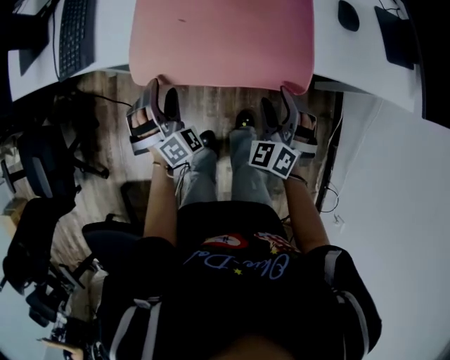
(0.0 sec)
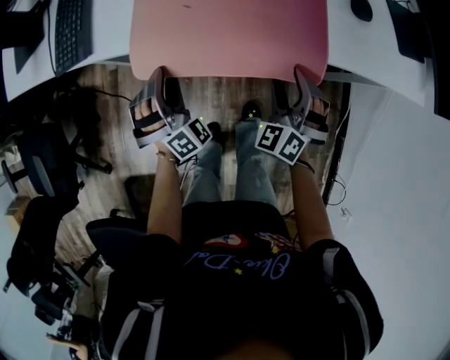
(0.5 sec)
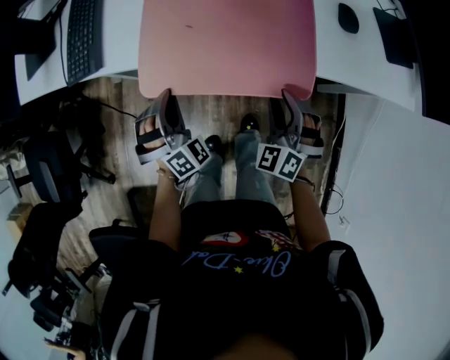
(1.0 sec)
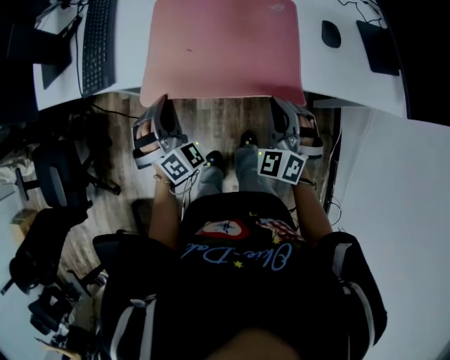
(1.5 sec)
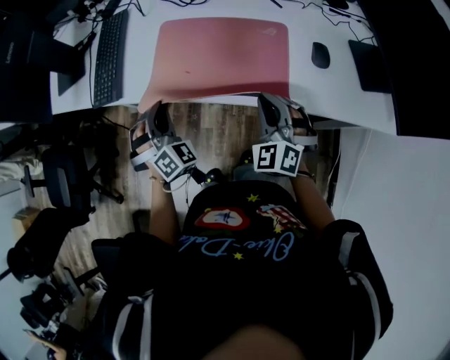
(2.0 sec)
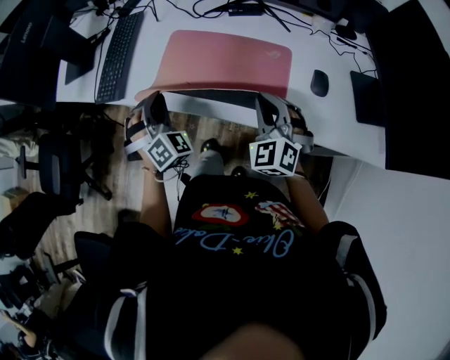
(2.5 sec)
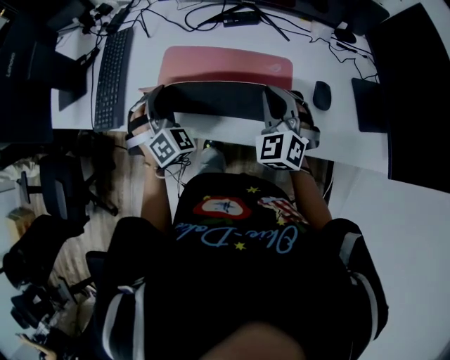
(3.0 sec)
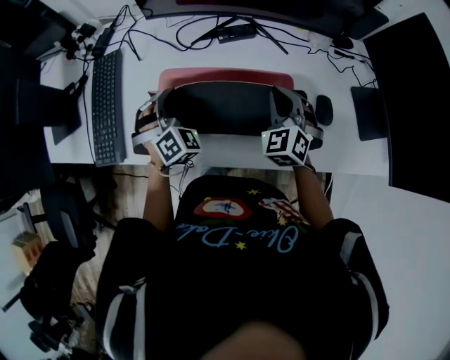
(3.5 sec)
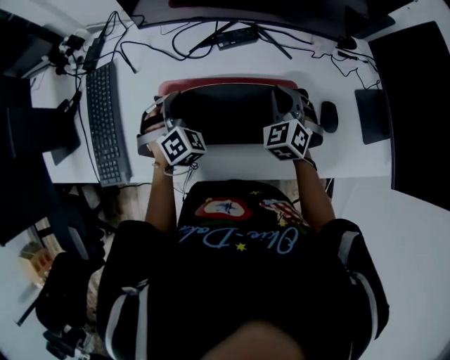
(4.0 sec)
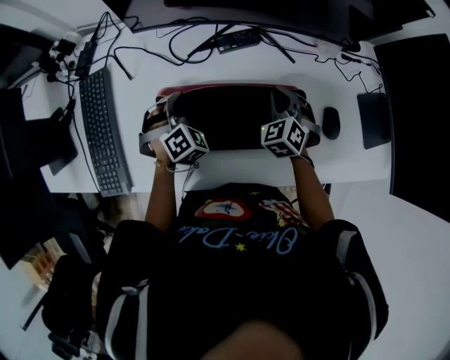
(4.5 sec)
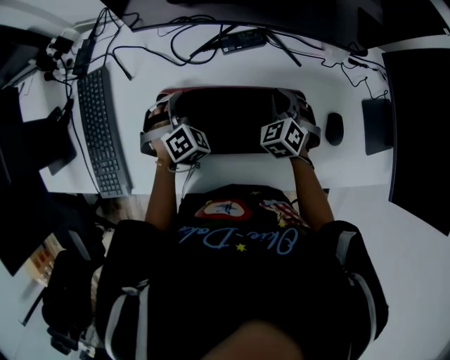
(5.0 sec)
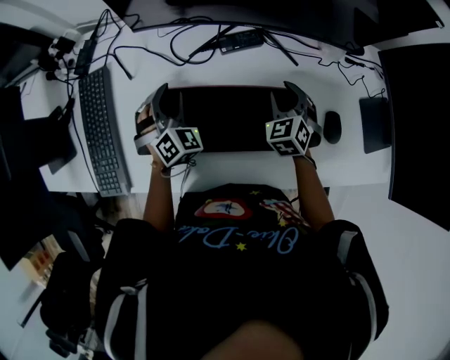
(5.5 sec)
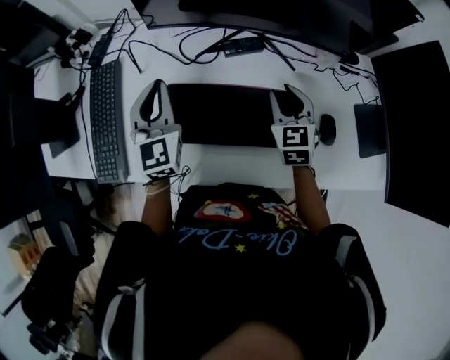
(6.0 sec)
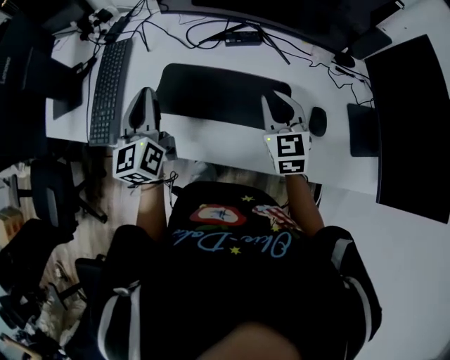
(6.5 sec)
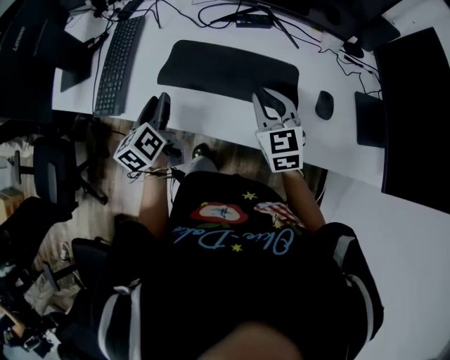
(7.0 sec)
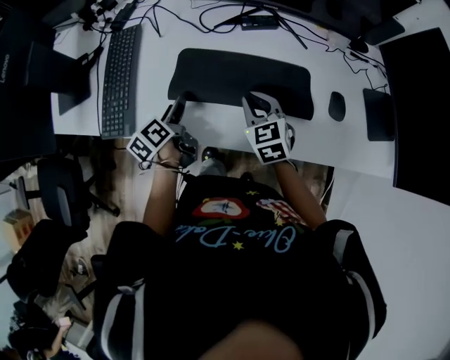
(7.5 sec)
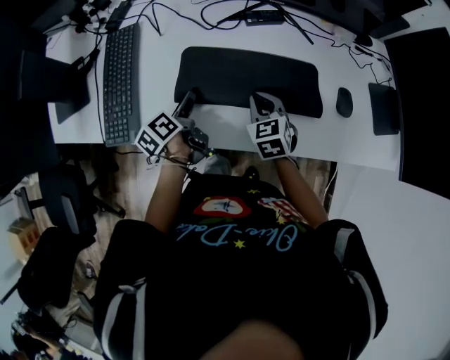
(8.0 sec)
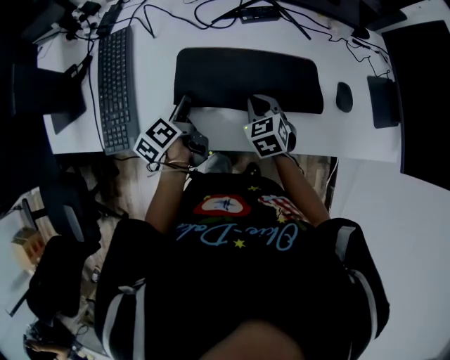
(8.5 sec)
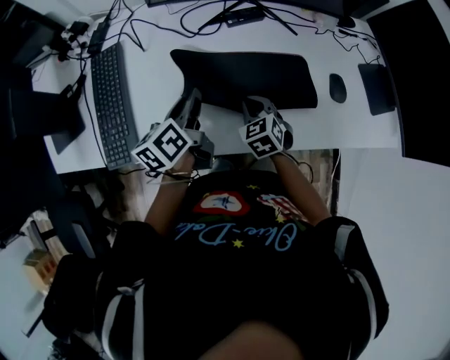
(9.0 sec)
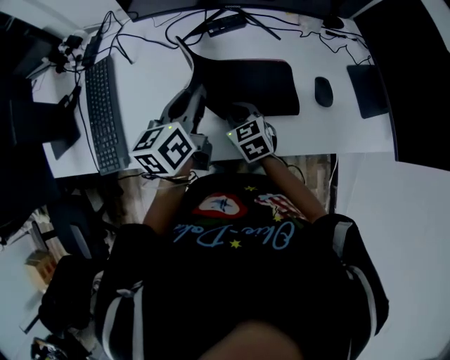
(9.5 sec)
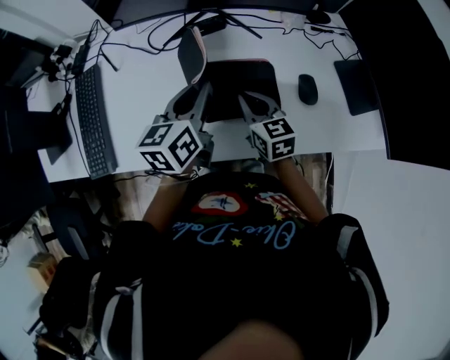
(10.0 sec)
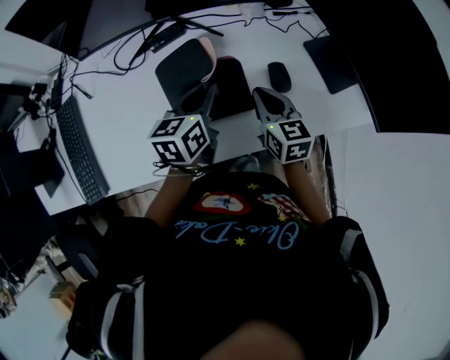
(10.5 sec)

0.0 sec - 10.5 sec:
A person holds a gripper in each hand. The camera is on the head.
0.0 sec - 2.0 sec: The left gripper moves upward, some 15 cm, and closes; the right gripper travels upward and forward by some 15 cm, and closes.
2.0 sec - 4.0 sec: Both grippers travel together forward, some 25 cm. The left gripper swivels approximately 20 degrees.
4.0 sec - 6.5 sec: The right gripper is displaced upward and backward by some 10 cm, and changes its angle by about 30 degrees. The left gripper shifts approximately 20 cm upward and backward, twists some 80 degrees counterclockwise, seen from behind, and opens, then closes again.
6.5 sec - 8.5 sec: The left gripper moves downward, some 20 cm, turns by some 60 degrees, and opens, then closes once more. The right gripper heads downward and to the left, covering about 20 cm, and swivels approximately 30 degrees.
8.5 sec - 10.5 sec: The grippers both shift to the right and upward by about 30 cm. The left gripper rolls clockwise, seen from behind, by approximately 50 degrees. The right gripper changes its angle by about 40 degrees.

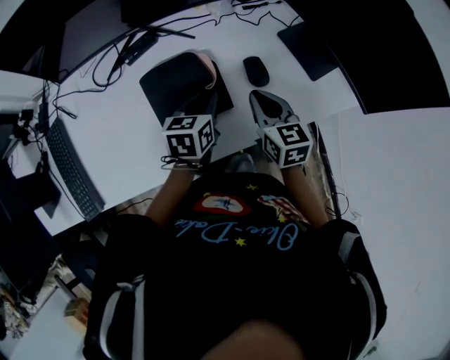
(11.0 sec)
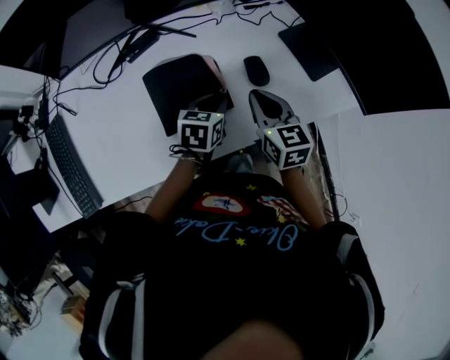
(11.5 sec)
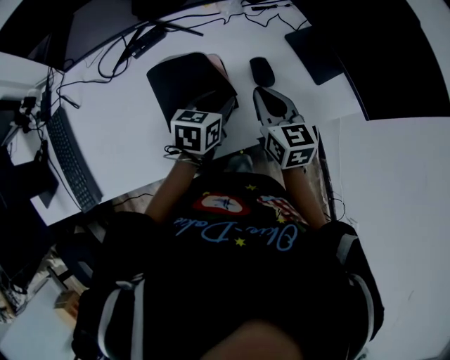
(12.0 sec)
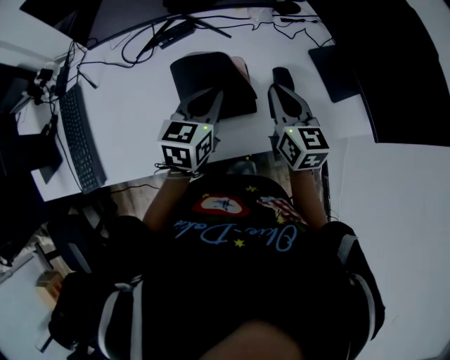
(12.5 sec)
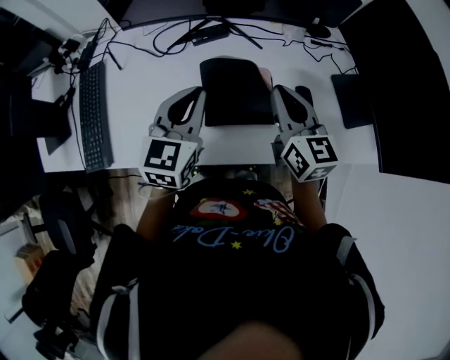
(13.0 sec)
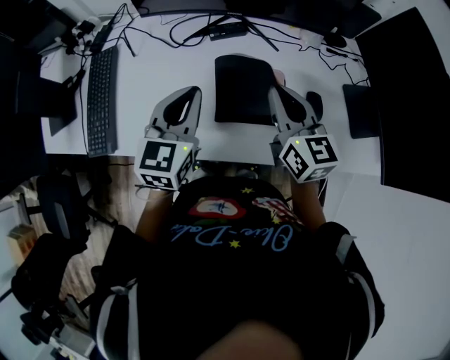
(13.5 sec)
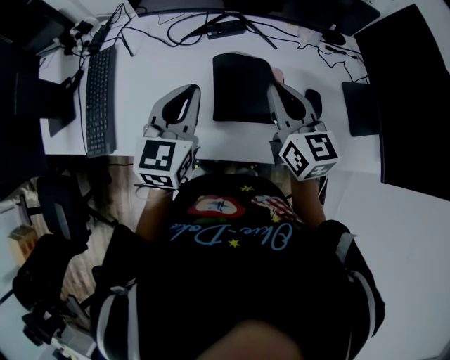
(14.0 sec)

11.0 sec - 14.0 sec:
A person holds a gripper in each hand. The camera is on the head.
11.0 sec - 12.5 sec: The right gripper moves roughly 5 cm. Meanwhile the left gripper travels upward and to the left by some 10 cm, and opens and closes again.
12.5 sec - 14.0 sec: The grippers both shift to the left and upward by roughly 15 cm. The left gripper changes its angle by some 20 degrees.

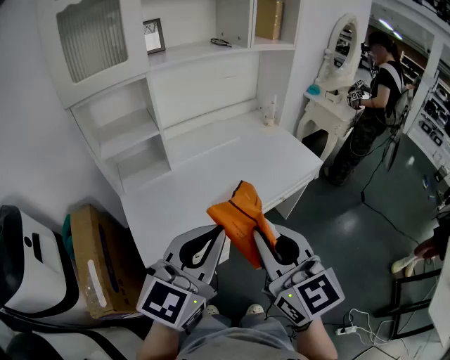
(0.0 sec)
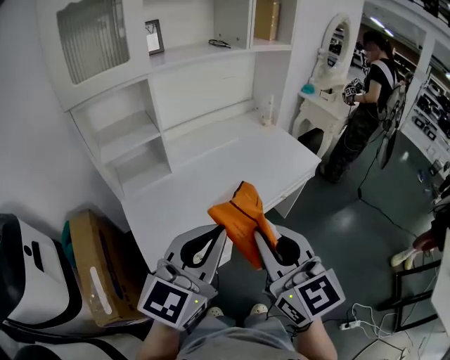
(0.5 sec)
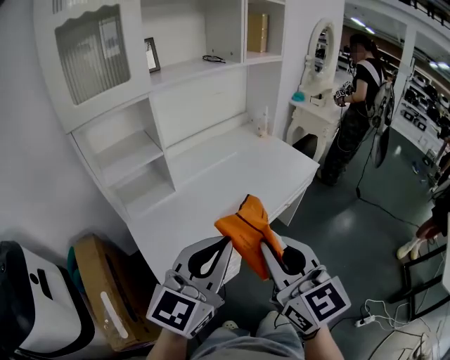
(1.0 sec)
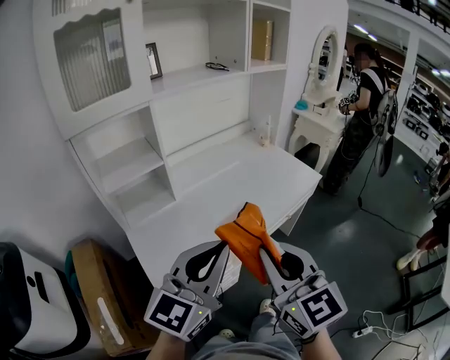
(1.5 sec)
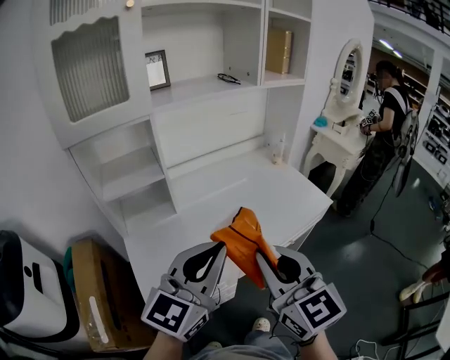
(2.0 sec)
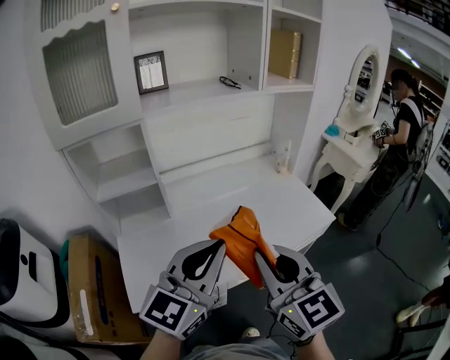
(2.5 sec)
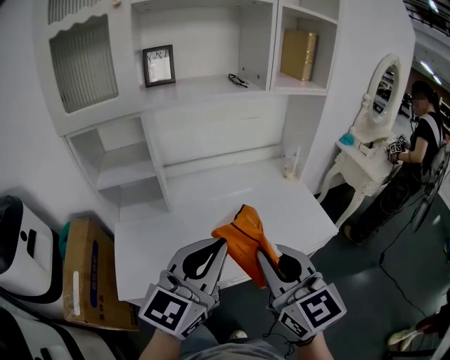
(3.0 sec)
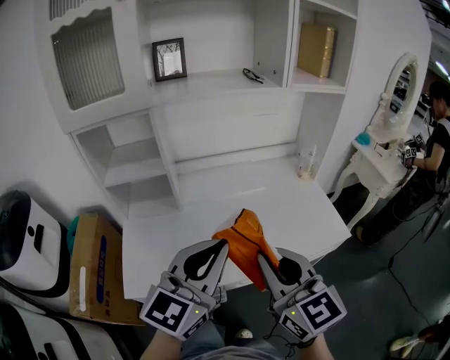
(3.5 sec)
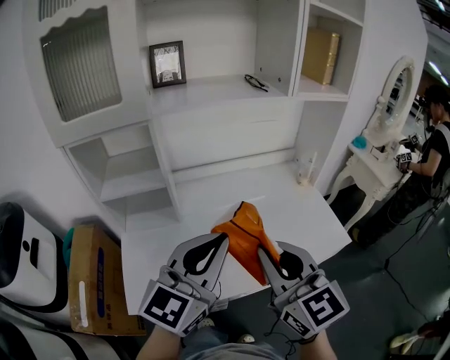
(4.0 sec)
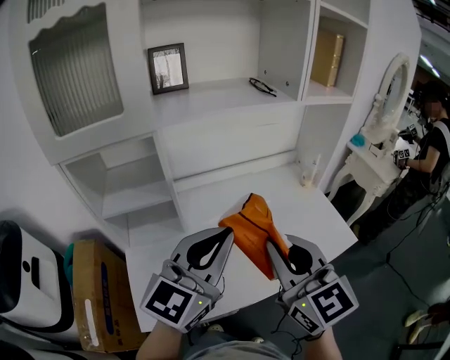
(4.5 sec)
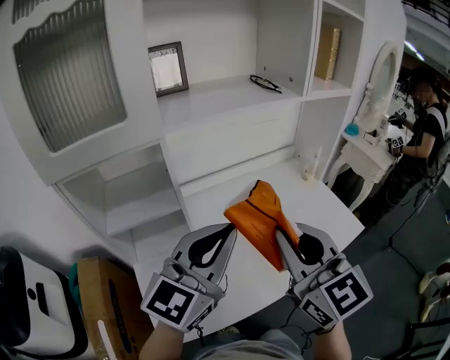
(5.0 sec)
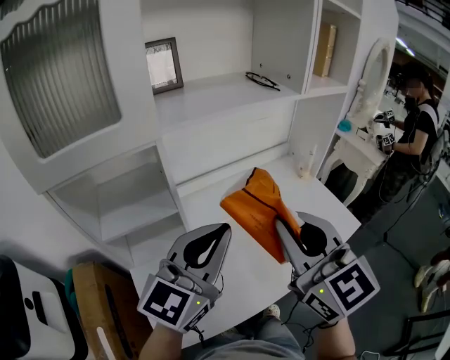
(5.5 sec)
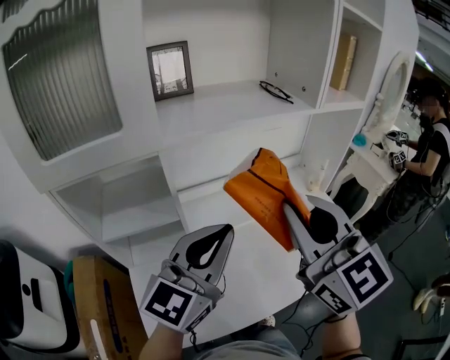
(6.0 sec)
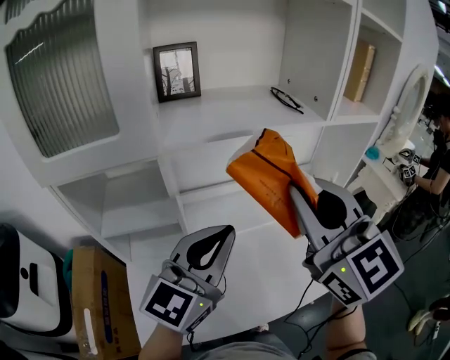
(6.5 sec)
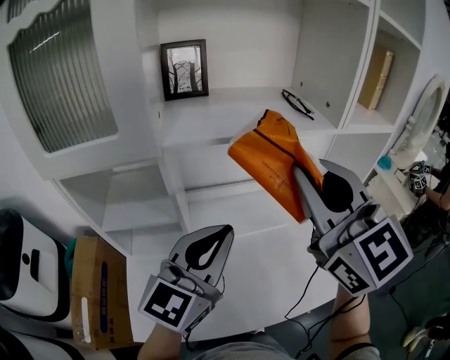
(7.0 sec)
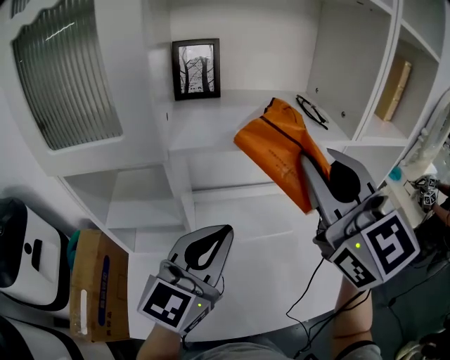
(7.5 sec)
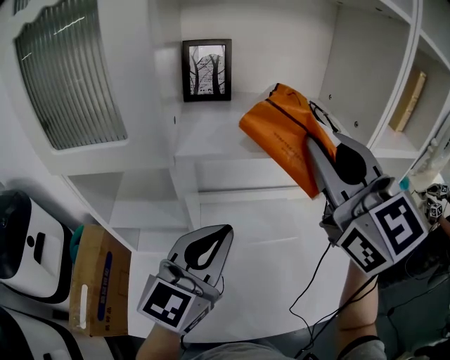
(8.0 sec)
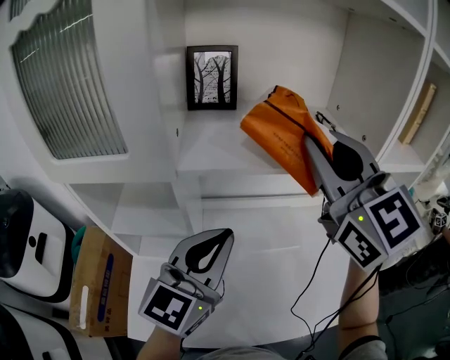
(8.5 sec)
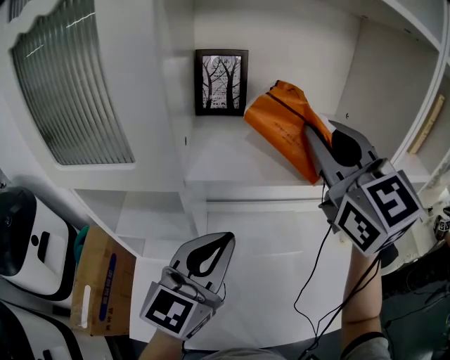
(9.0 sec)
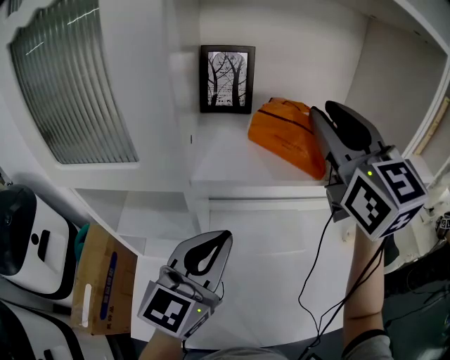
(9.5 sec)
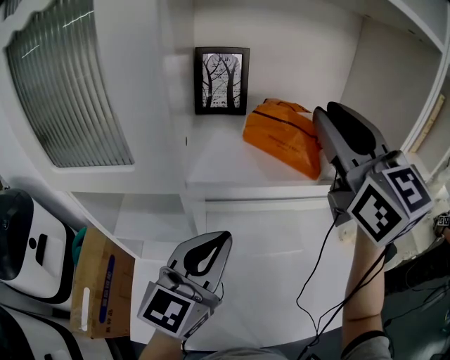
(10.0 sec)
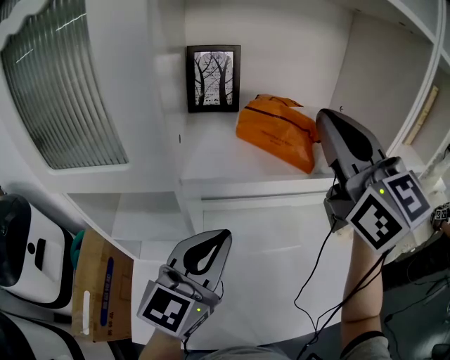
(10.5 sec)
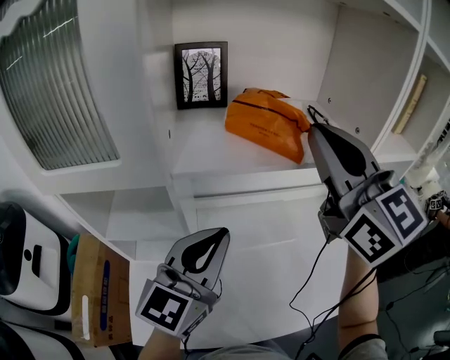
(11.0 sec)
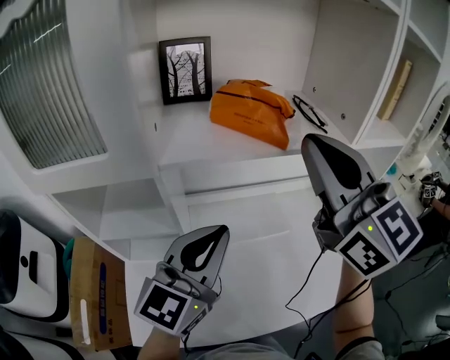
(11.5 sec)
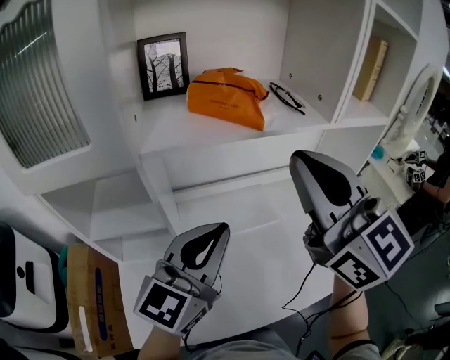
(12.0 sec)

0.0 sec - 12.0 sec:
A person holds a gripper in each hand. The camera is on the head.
0.0 sec - 2.0 sec: The two grippers go approximately 10 cm forward.
2.0 sec - 4.0 sec: Both grippers move forward, approximately 15 cm.
4.0 sec - 6.0 sec: The right gripper travels forward, upward and to the left by approximately 20 cm, while the left gripper shifts about 15 cm forward and to the left.
6.0 sec - 8.0 sec: The left gripper shifts some 5 cm forward. The right gripper goes approximately 15 cm forward and upward.
8.0 sec - 10.0 sec: The right gripper goes roughly 10 cm forward.
10.0 sec - 12.0 sec: The left gripper moves to the right, about 5 cm; the right gripper moves backward and downward, about 15 cm, and closes its fingers.

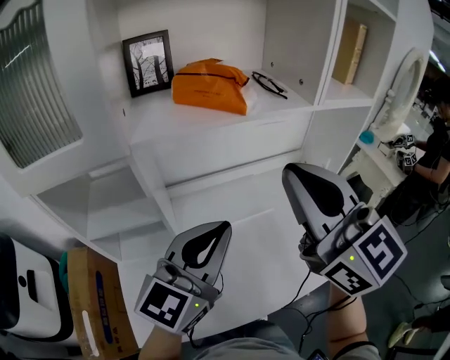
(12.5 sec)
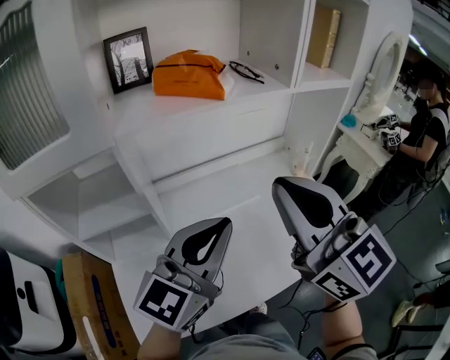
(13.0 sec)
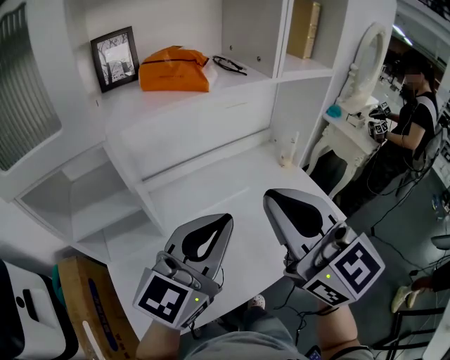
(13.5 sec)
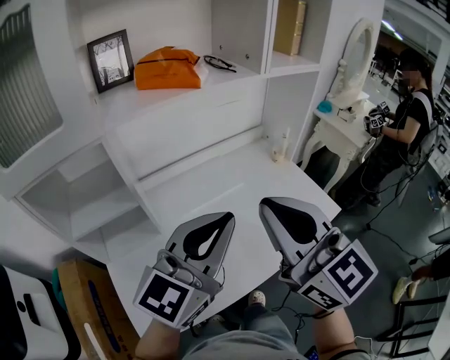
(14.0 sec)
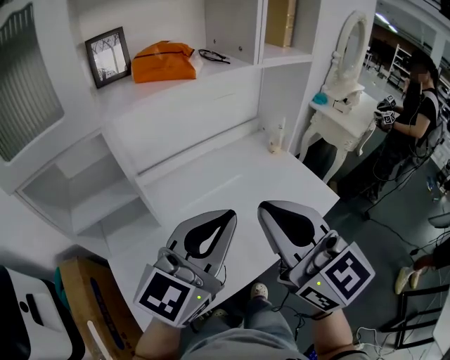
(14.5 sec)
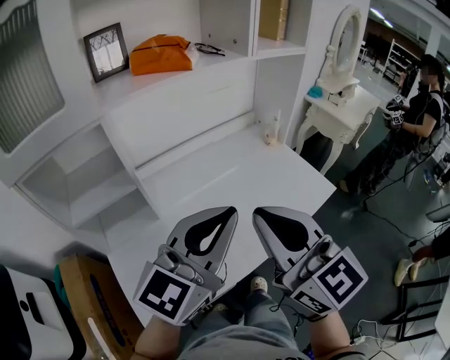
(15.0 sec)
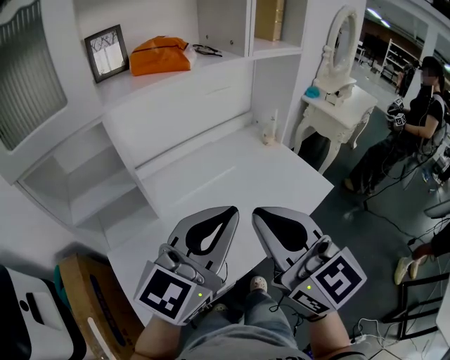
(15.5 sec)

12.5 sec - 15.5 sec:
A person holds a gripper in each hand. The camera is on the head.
12.5 sec - 14.0 sec: The left gripper shifts roughly 5 cm backward. Meanwhile the right gripper heads backward and downward, covering some 15 cm.
14.0 sec - 15.5 sec: Both grippers travel together backward, roughly 5 cm.
